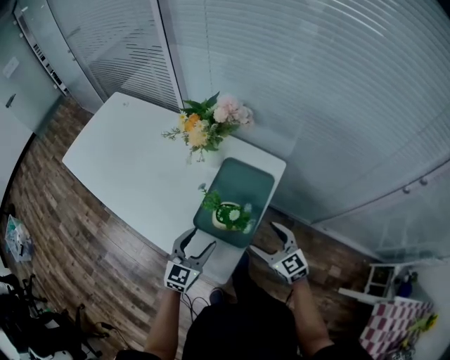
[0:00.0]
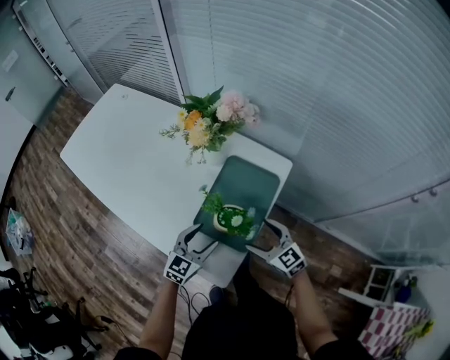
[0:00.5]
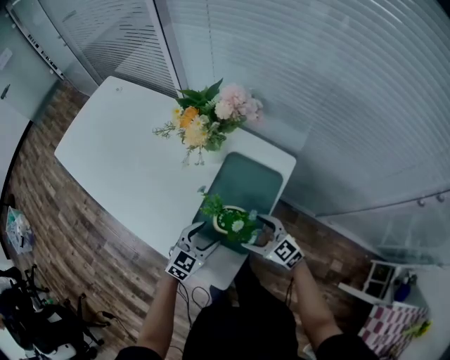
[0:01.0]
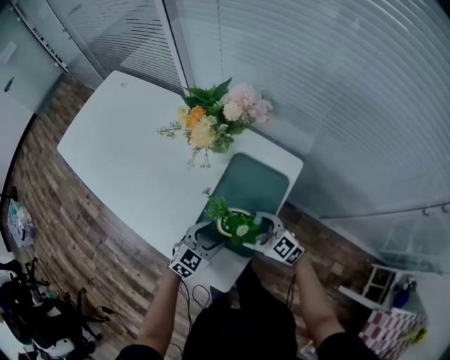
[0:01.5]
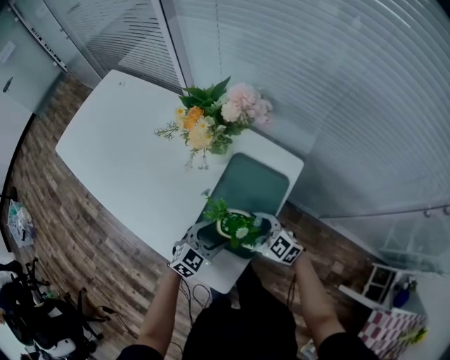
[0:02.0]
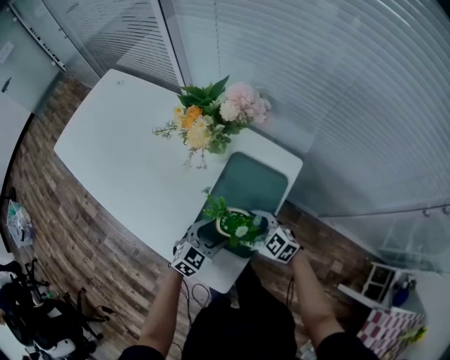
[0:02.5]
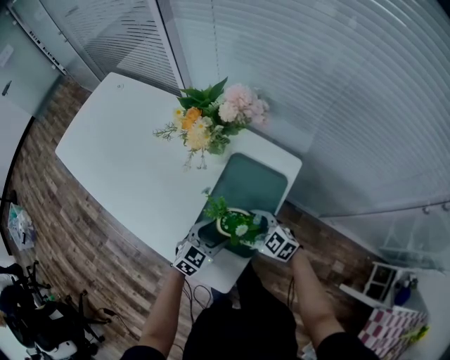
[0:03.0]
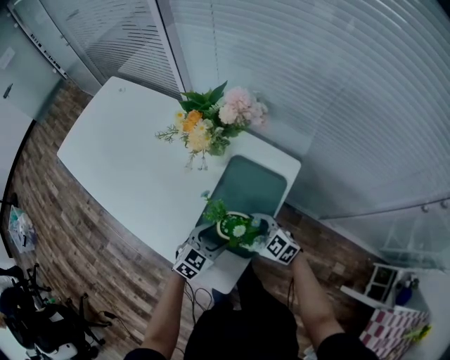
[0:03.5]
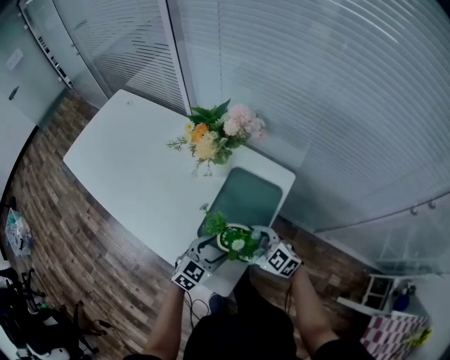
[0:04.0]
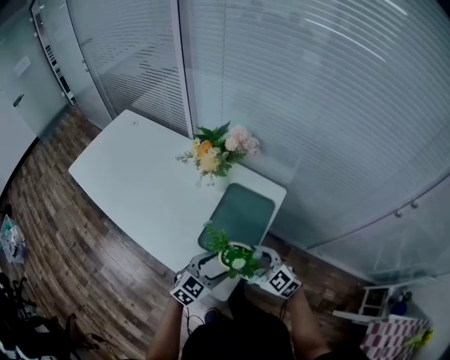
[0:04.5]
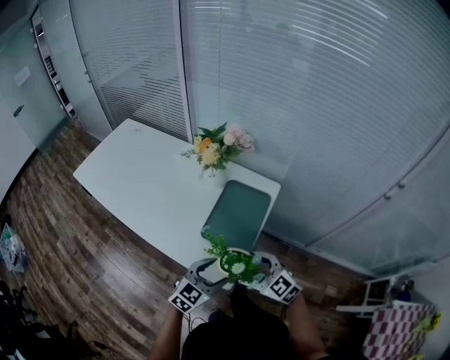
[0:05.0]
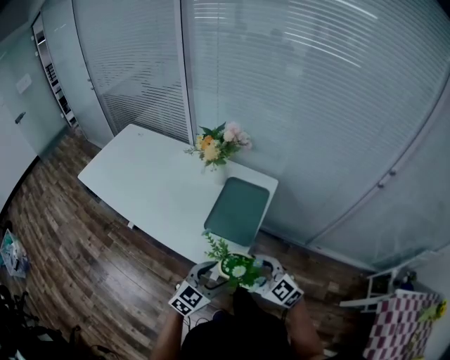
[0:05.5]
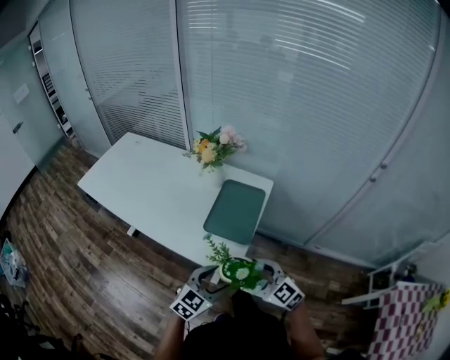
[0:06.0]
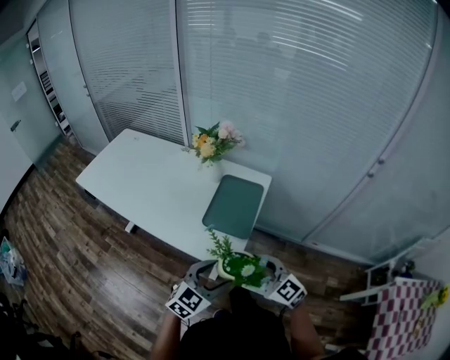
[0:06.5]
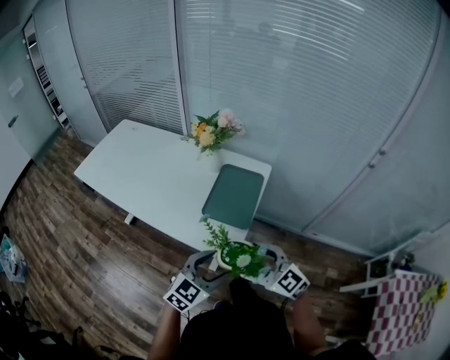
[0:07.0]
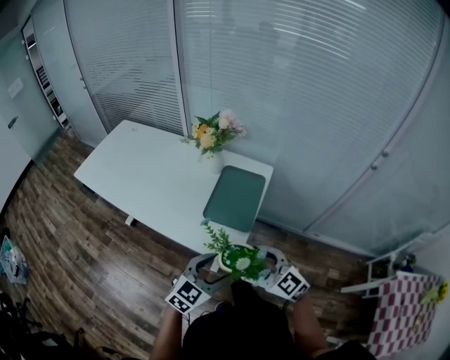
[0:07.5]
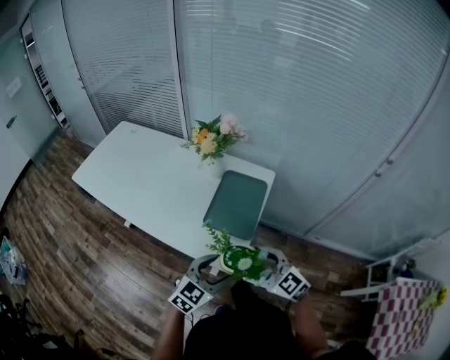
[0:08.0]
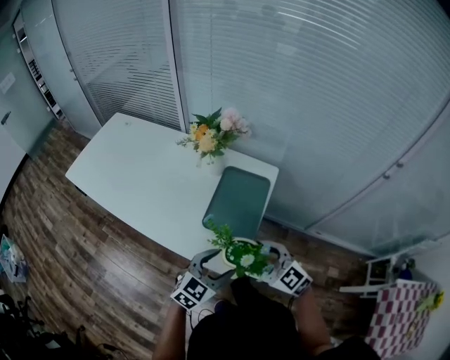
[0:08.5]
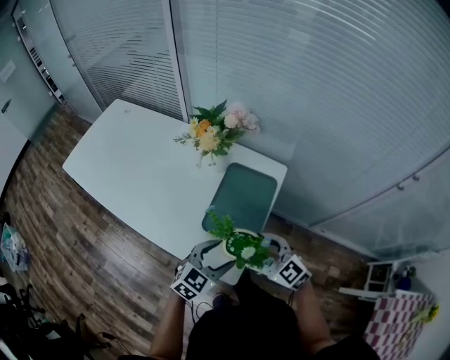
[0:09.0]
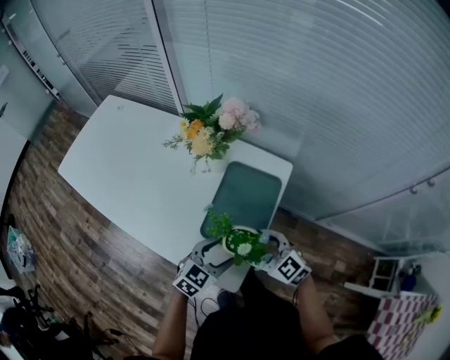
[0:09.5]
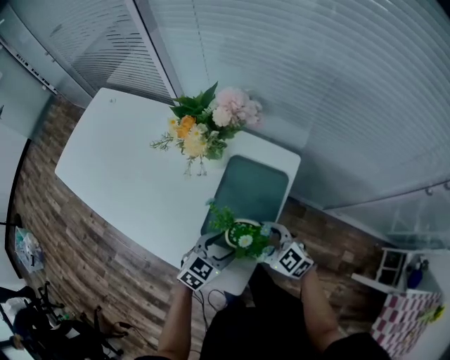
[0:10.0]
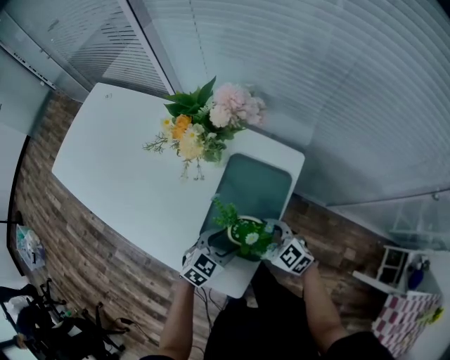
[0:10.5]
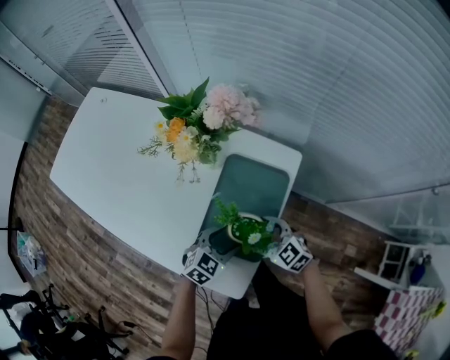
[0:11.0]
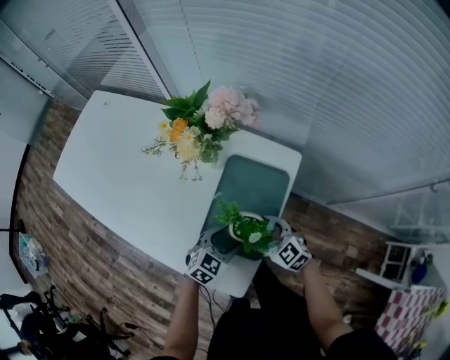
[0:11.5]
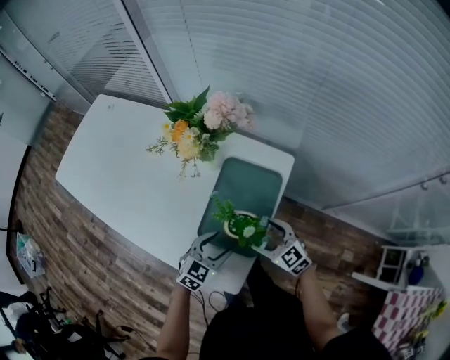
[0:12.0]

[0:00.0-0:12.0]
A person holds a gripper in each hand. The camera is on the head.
0.0 to 2.0 s: The left gripper shifts approximately 10 cm downward, and changes its angle by approximately 30 degrees. The right gripper goes about 10 cm downward, to the left and forward, and swivels about 30 degrees.
2.0 to 4.0 s: The right gripper is displaced upward by approximately 5 cm, while the left gripper changes place by about 5 cm.
4.0 to 6.0 s: Both grippers travel together backward and upward, about 25 cm.
6.0 to 8.0 s: The grippers move only a little.
8.0 to 10.0 s: The grippers both shift forward and downward by about 25 cm.
10.0 to 12.0 s: The right gripper ends up approximately 5 cm from where it was.

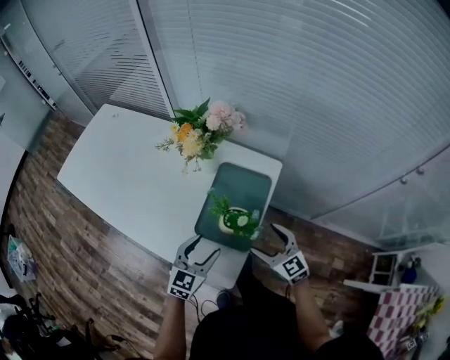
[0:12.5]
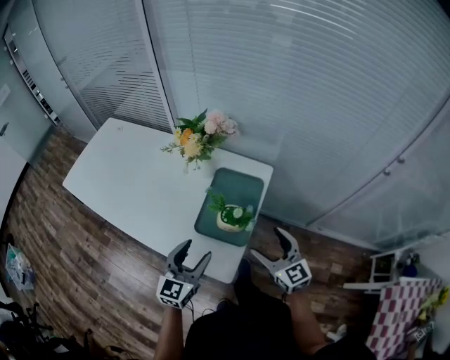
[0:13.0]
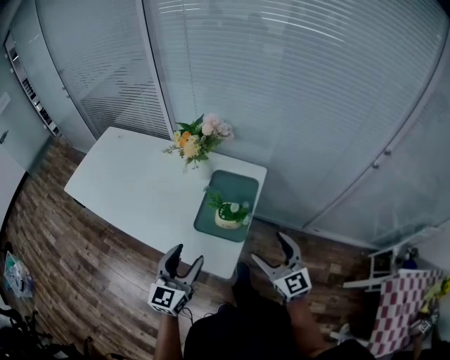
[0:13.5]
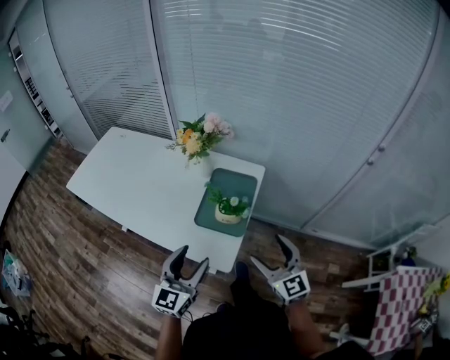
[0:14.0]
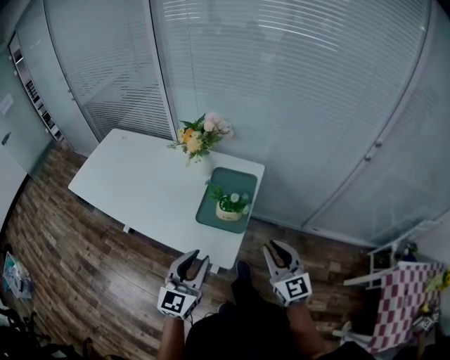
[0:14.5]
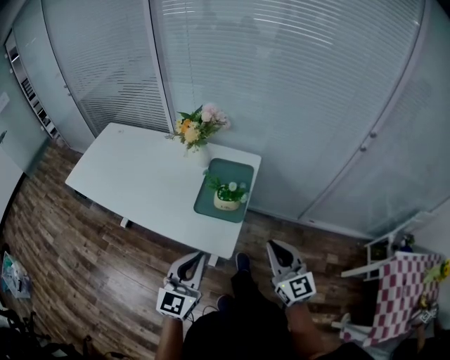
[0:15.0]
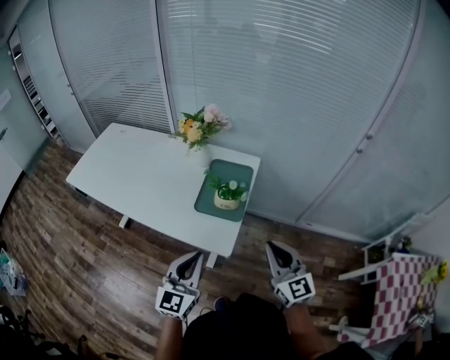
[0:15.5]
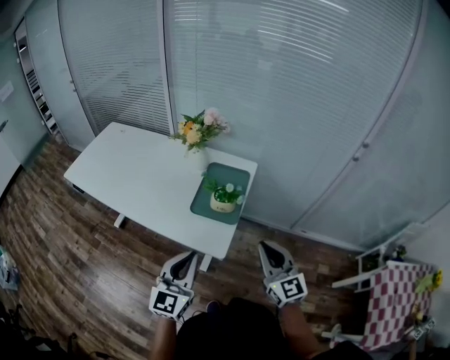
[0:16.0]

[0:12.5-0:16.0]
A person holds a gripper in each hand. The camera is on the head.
12.5 to 14.5 s: Both grippers move backward and upward, approximately 20 cm. The right gripper swivels some 30 degrees, and closes. The left gripper turns by roughly 20 degrees, and closes up.
14.5 to 16.0 s: The left gripper travels backward by some 5 cm, and closes, while the right gripper ends up some 5 cm from where it was.

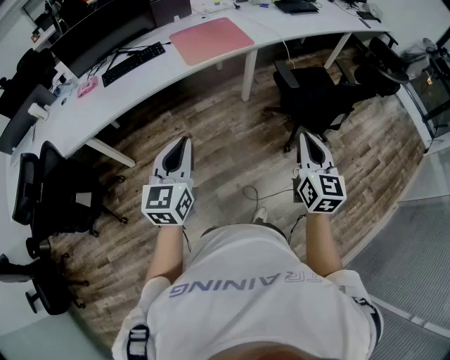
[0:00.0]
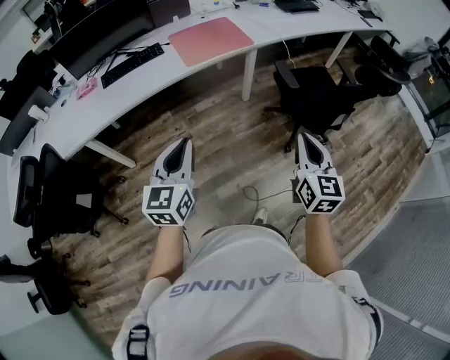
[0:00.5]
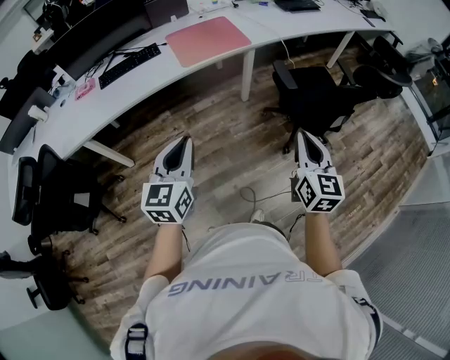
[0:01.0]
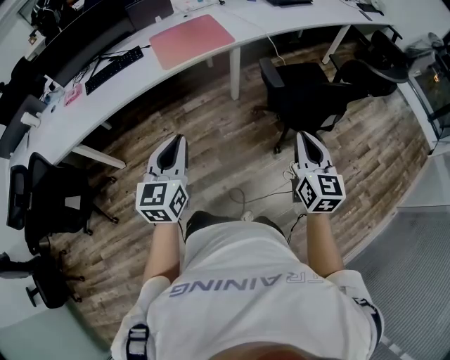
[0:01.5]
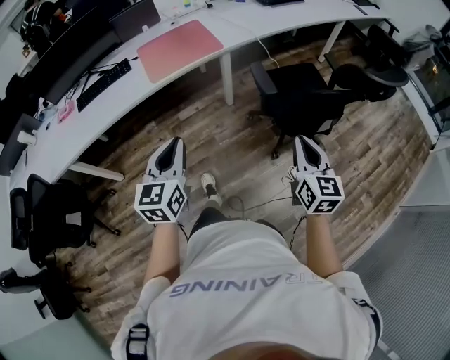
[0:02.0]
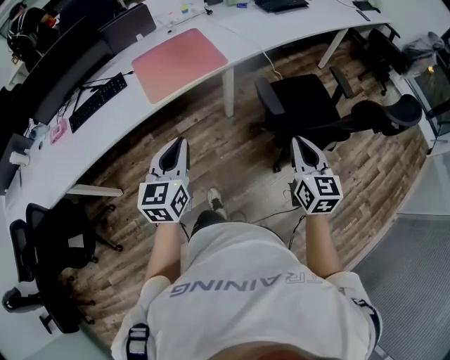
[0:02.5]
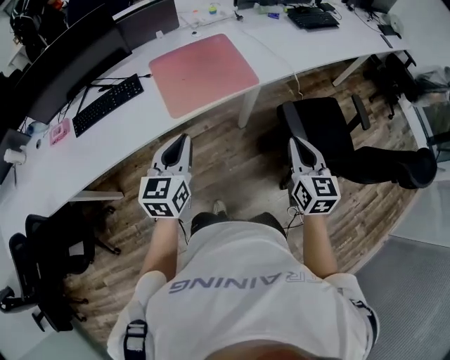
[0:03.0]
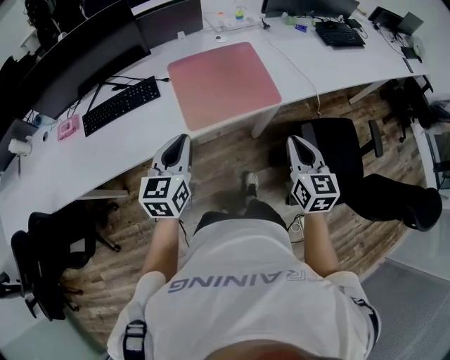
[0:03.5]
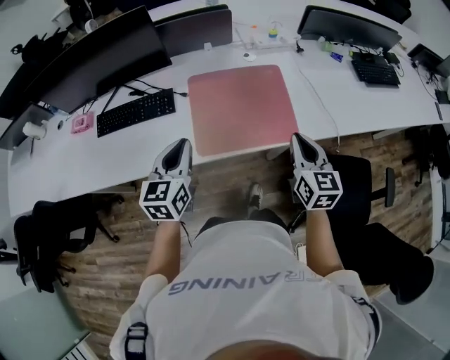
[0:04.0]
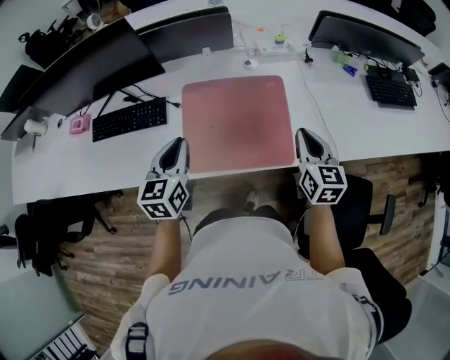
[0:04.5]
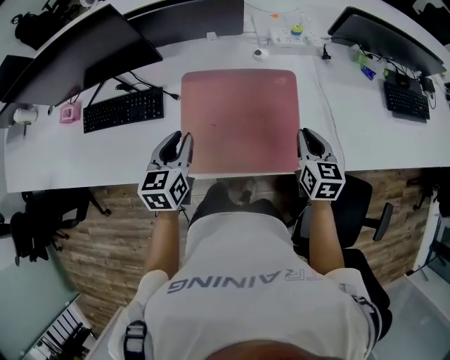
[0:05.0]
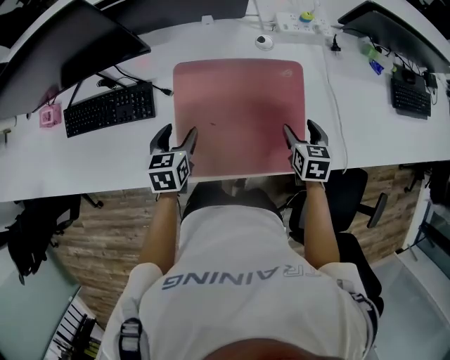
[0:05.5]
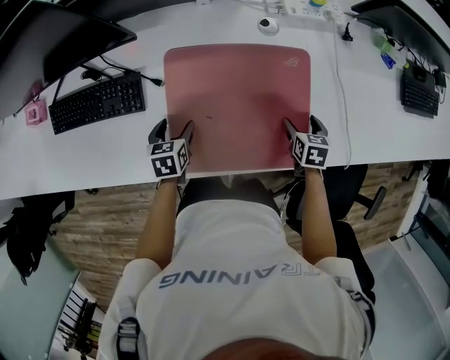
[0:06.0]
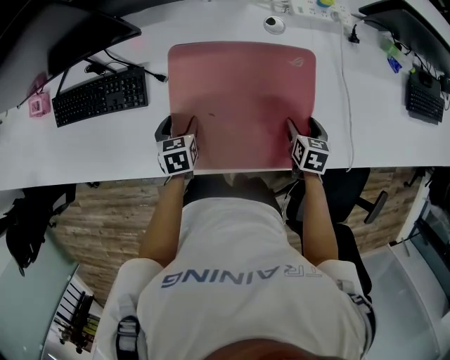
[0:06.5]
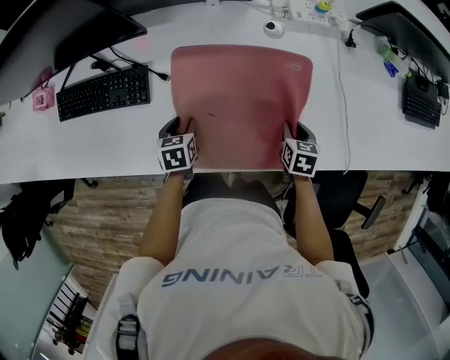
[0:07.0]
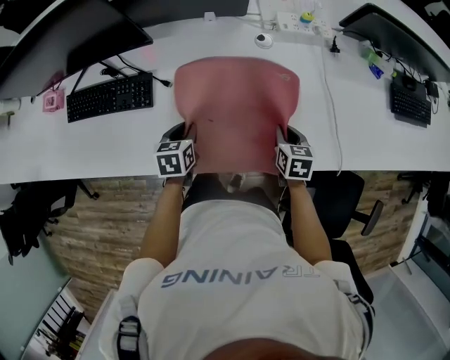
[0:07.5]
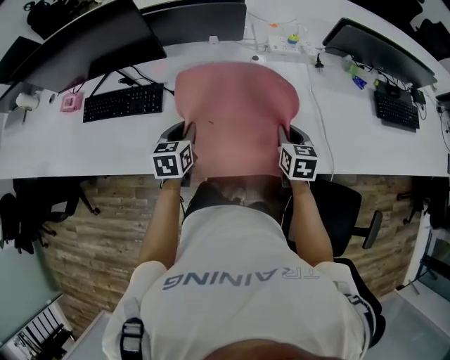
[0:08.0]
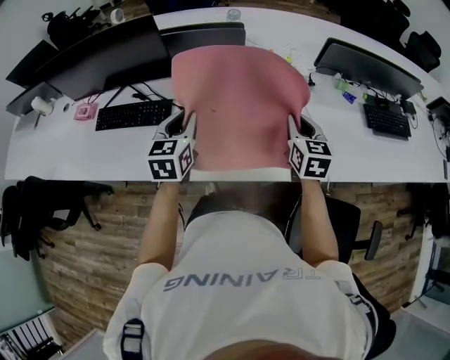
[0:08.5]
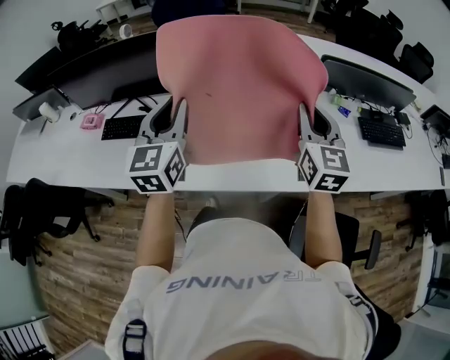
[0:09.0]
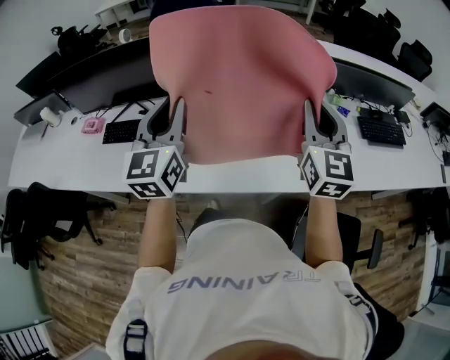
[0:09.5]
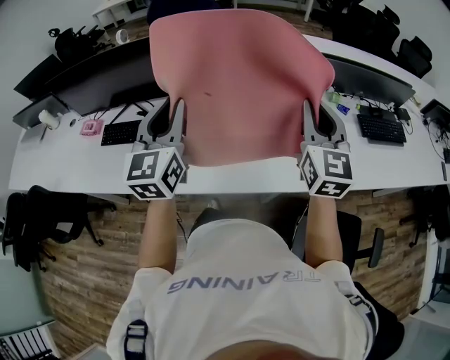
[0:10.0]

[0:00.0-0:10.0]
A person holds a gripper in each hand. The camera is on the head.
0.0 to 2.0 s: Both grippers travel together to the right and forward, some 20 cm.
2.0 to 4.0 s: Both grippers are carried forward and to the left, about 60 cm. The right gripper turns by some 20 degrees.
4.0 to 6.0 s: Both grippers move downward and forward, roughly 40 cm. The right gripper tips its fingers downward by about 40 degrees, and opens its fingers, while the left gripper tilts its fingers approximately 40 degrees downward, and opens.
6.0 to 8.0 s: The two grippers go about 15 cm upward. The right gripper swivels about 20 degrees, and closes up, while the left gripper closes its fingers.
8.0 to 10.0 s: The two grippers go about 35 cm upward. The right gripper angles its fingers upward, by approximately 40 degrees; the left gripper tips its fingers upward by approximately 40 degrees.

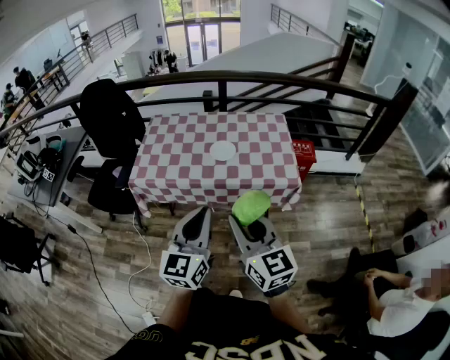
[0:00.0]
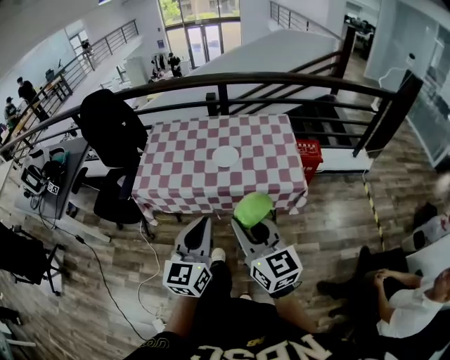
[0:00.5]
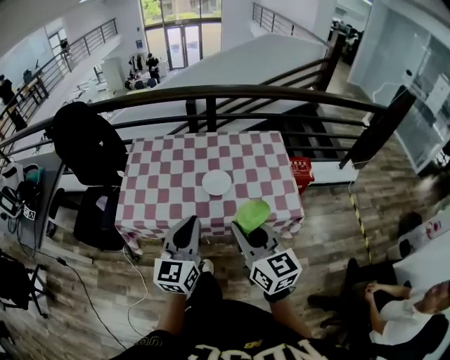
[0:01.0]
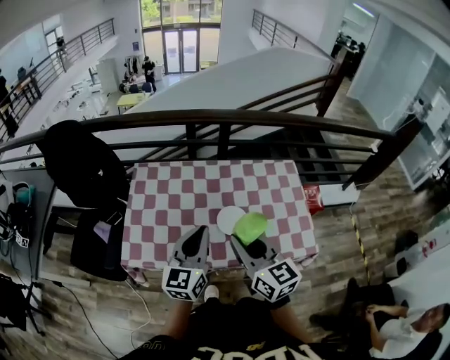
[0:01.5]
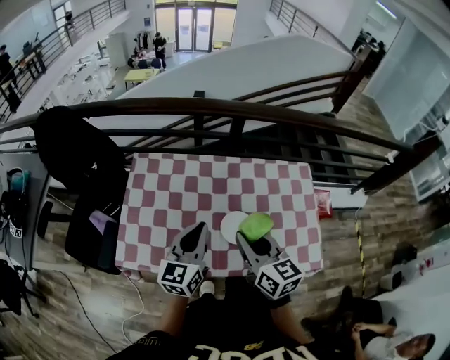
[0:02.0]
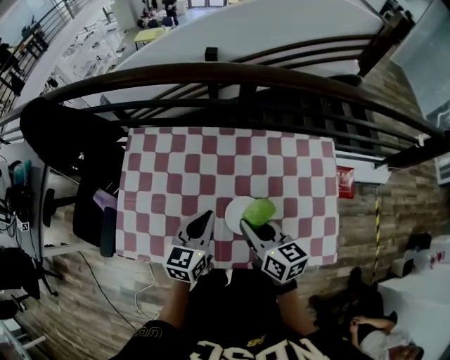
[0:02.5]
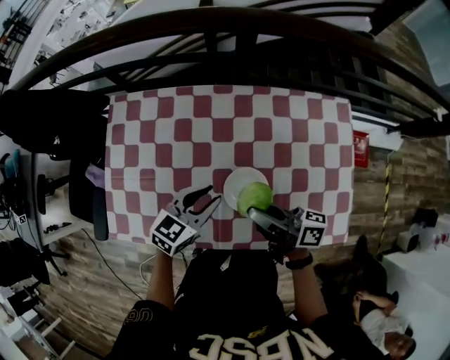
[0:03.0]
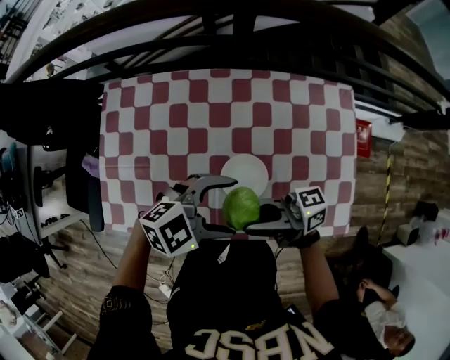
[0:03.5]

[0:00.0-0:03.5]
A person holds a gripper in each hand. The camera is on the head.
0.0 to 2.0 s: Both grippers are carried forward, some 50 cm.
2.0 to 3.5 s: Both grippers travel together downward, some 15 cm. The left gripper swivels about 80 degrees, and opens, while the right gripper tilts its fingers some 40 degrees upward.
